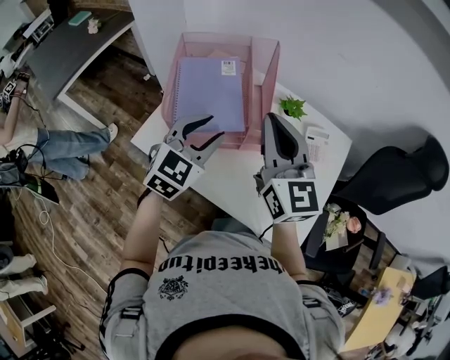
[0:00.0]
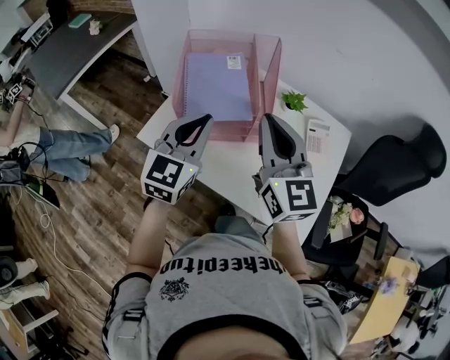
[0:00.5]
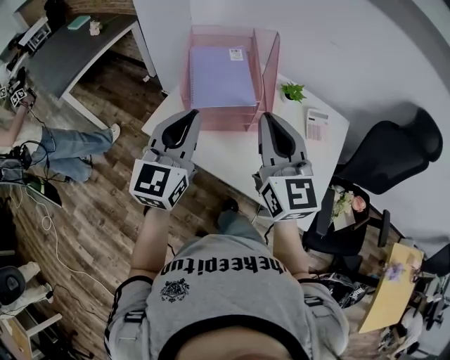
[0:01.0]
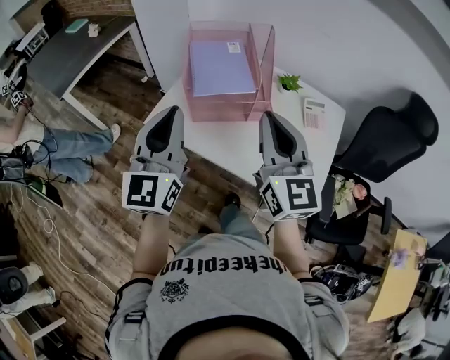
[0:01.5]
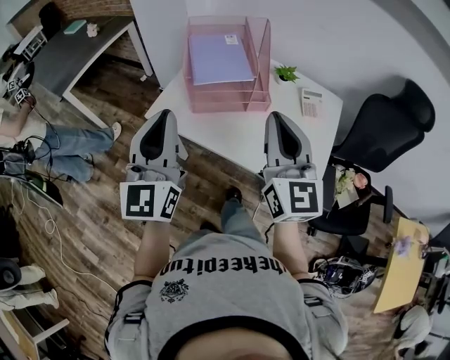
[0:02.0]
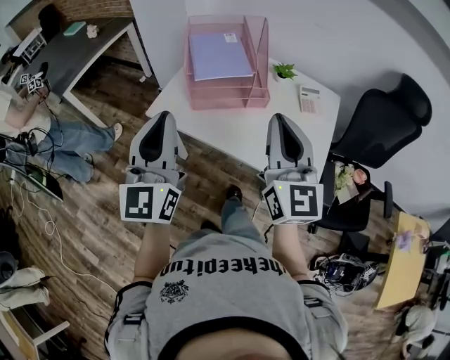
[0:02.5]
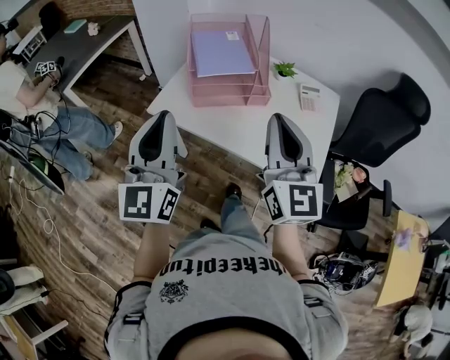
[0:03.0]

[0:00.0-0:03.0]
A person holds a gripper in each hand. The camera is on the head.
0:00.0 to 0:01.5: The right gripper goes about 15 cm backward. The left gripper goes approximately 25 cm backward, to the left and upward, tilts its fingers approximately 30 degrees upward, and closes.
0:01.5 to 0:03.0: Both grippers travel together backward, roughly 10 cm.

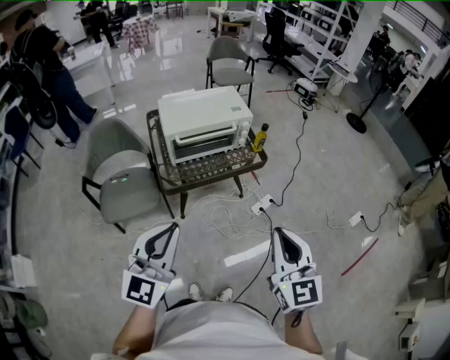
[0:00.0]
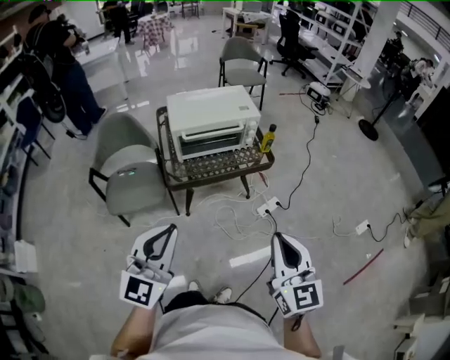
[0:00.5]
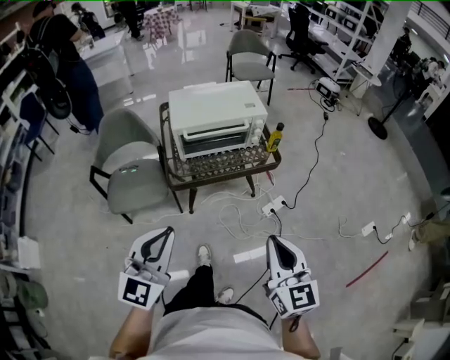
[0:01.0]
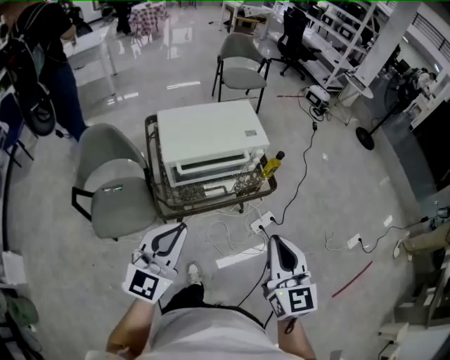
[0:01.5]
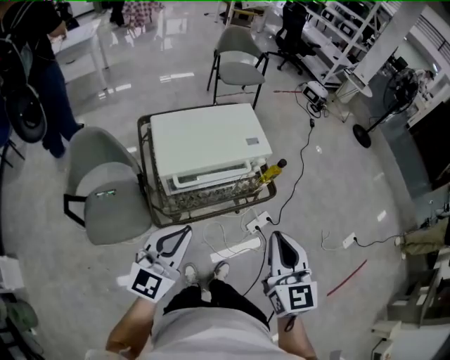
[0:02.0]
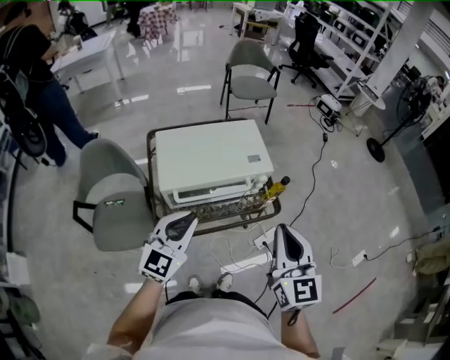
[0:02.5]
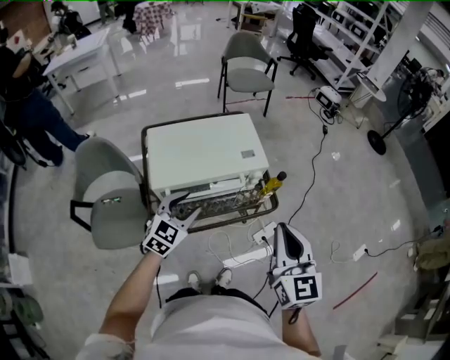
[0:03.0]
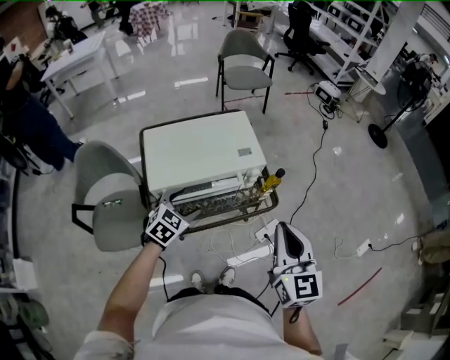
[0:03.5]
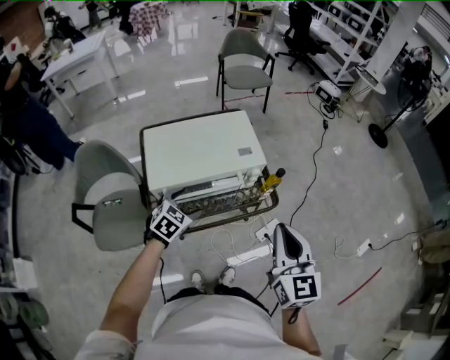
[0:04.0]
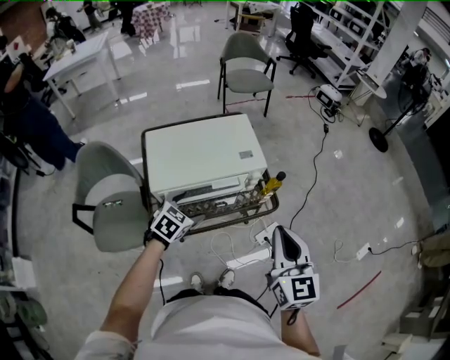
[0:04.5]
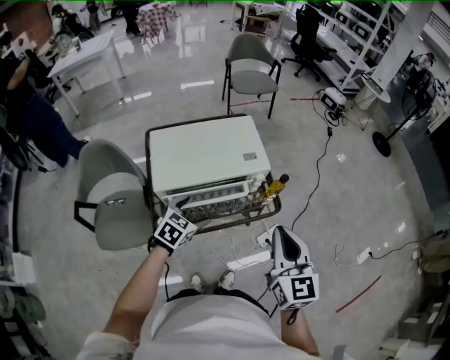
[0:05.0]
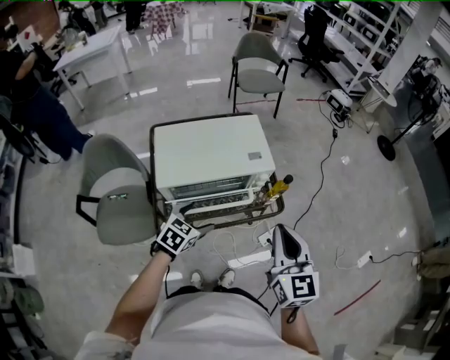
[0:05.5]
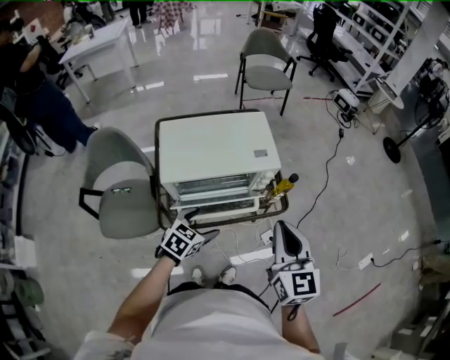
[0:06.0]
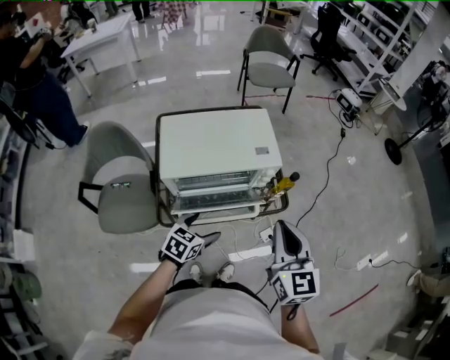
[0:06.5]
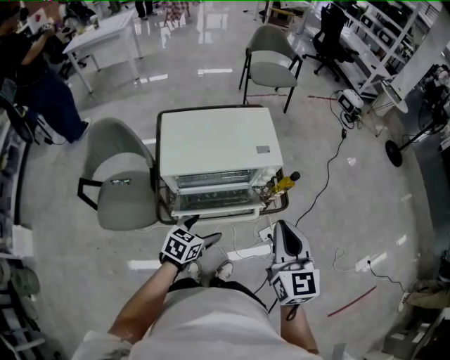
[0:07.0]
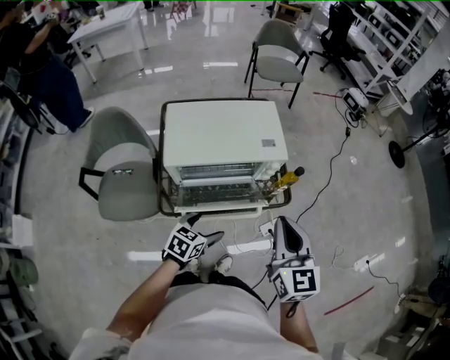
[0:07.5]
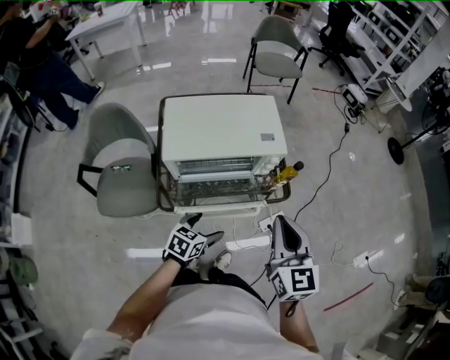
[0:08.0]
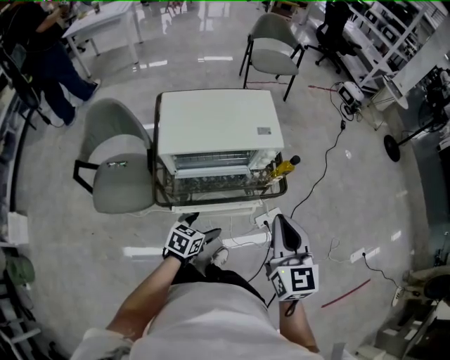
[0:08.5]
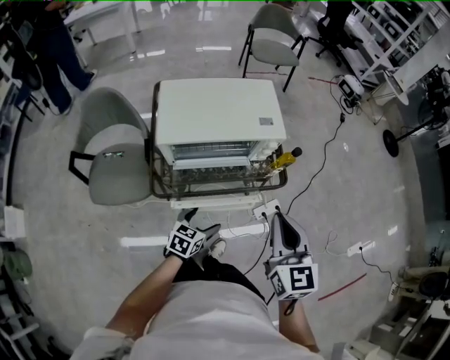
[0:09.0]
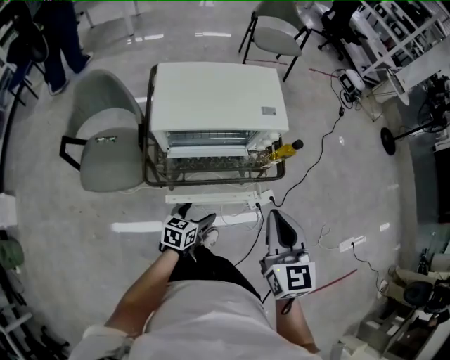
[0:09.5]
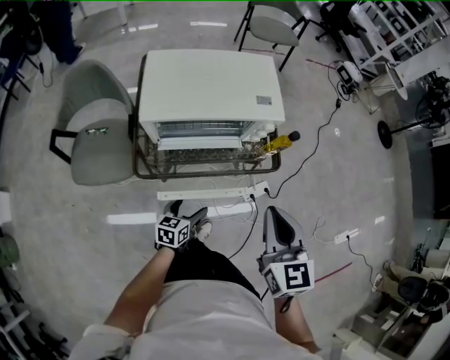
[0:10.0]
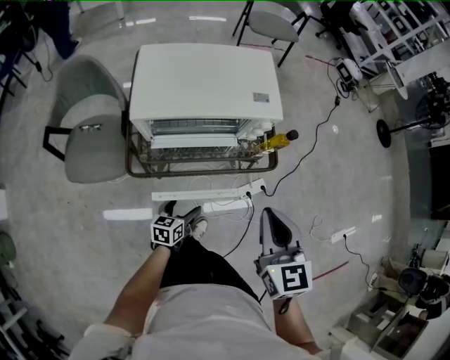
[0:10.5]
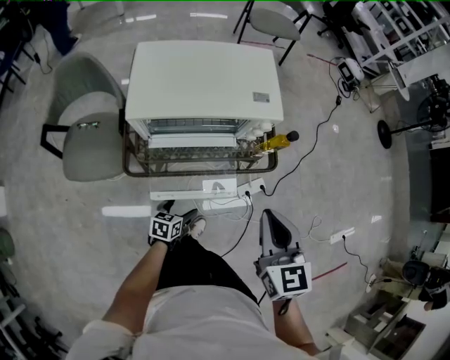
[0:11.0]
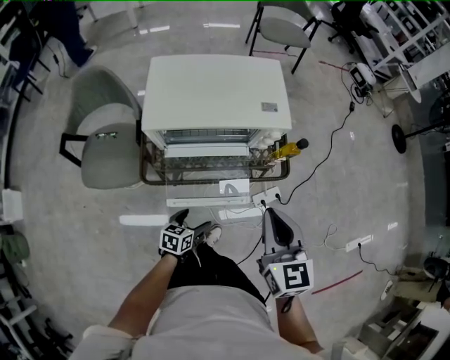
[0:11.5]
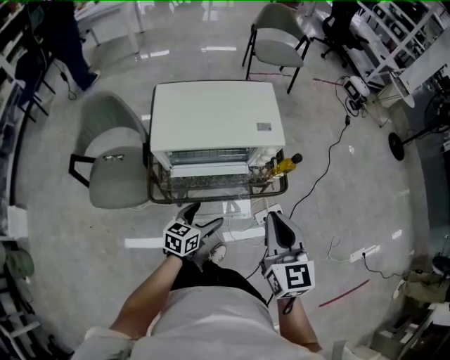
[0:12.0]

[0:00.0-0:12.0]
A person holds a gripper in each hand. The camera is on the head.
0:00.0 to 0:02.0: The two grippers go some 25 cm forward.
0:02.0 to 0:04.0: The left gripper is displaced forward and downward by roughly 25 cm, points its fingers approximately 40 degrees further downward, and opens; the right gripper shifts approximately 10 cm forward and to the right.
0:04.0 to 0:06.0: The left gripper is displaced backward by roughly 5 cm.
0:06.0 to 0:08.0: The left gripper travels backward by roughly 5 cm.
0:08.0 to 0:10.0: The right gripper goes approximately 5 cm downward. Meanwhile the left gripper travels downward by roughly 10 cm, and rotates about 20 degrees.
0:10.0 to 0:12.0: The left gripper shifts roughly 10 cm upward and forward.

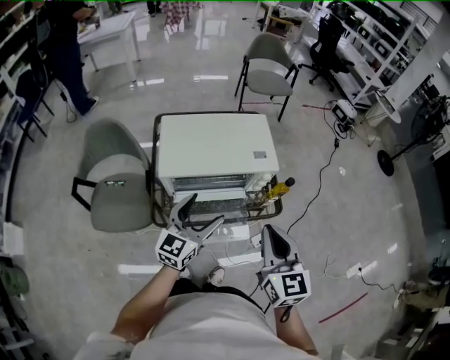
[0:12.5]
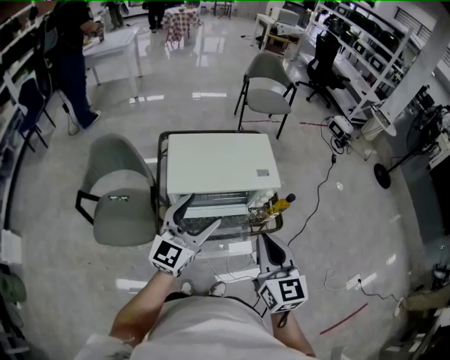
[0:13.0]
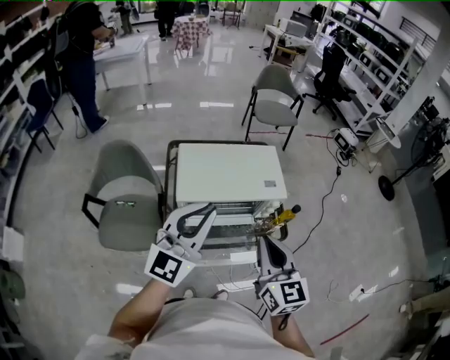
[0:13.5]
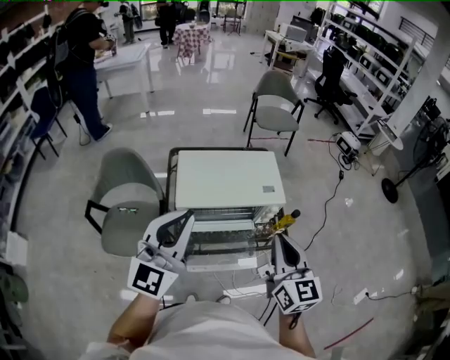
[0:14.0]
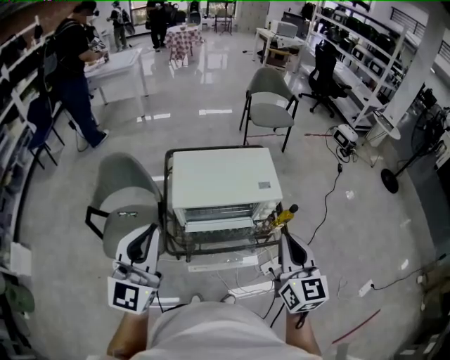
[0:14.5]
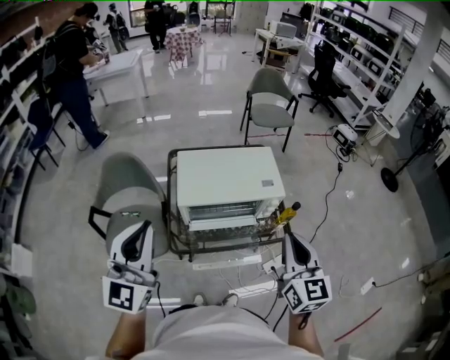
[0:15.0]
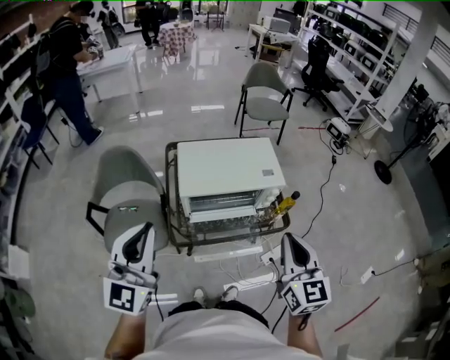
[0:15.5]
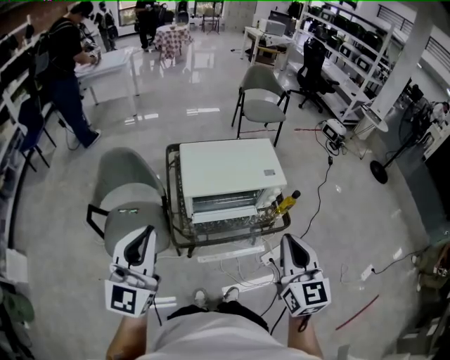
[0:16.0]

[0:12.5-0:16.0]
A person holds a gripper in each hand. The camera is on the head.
0:12.5 to 0:14.5: The left gripper goes approximately 25 cm upward, to the left and backward, changes its angle by about 30 degrees, and closes its fingers. The right gripper shifts some 5 cm upward.
0:14.5 to 0:16.0: The right gripper is displaced backward and to the left by some 10 cm; the left gripper is displaced to the left and backward by about 10 cm.

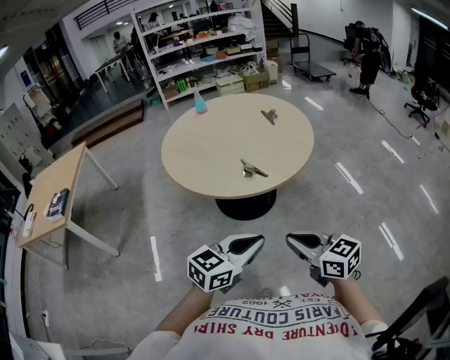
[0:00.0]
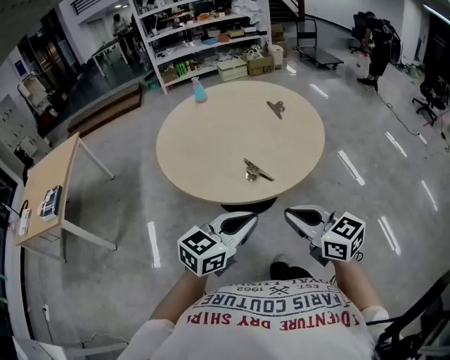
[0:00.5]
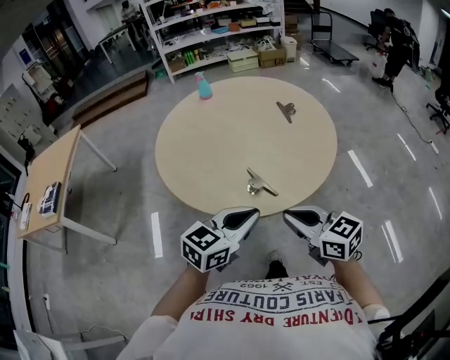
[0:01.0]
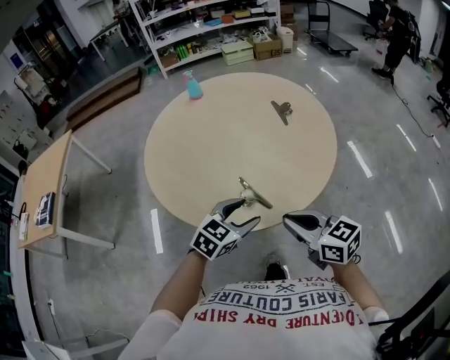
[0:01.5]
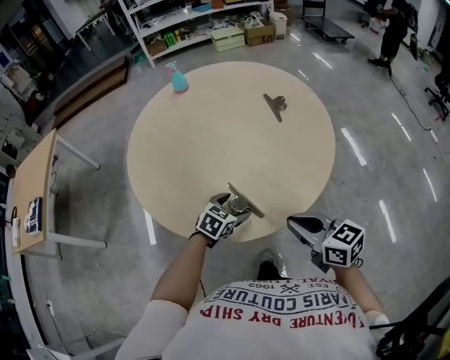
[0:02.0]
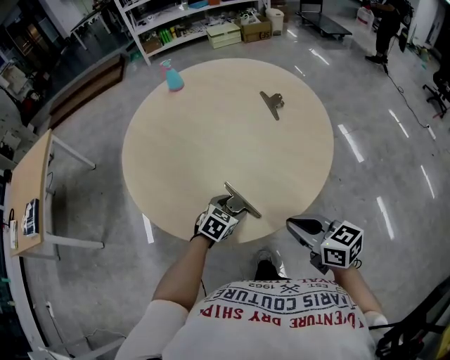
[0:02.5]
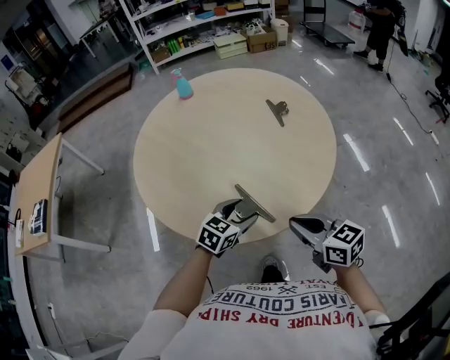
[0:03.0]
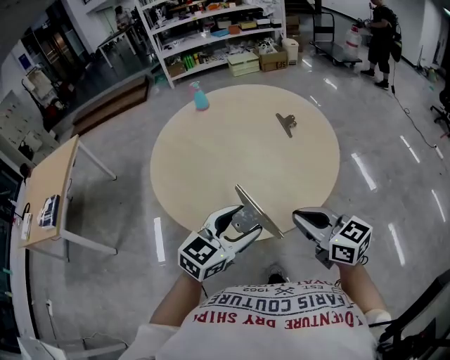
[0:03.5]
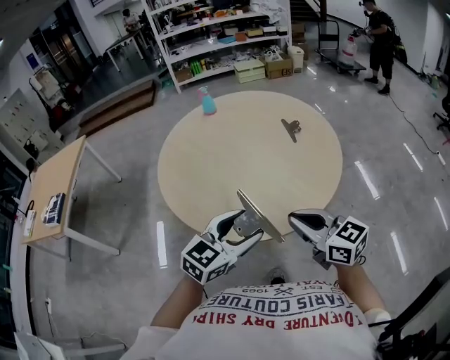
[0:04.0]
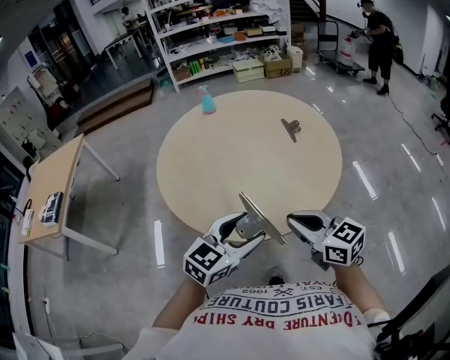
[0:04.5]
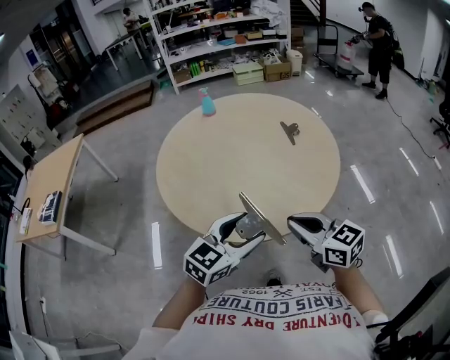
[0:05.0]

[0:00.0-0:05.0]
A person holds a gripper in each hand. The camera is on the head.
0:00.0 to 0:02.5: The left gripper is displaced forward and downward by approximately 50 cm, points its fingers some 40 degrees further downward, and opens. The right gripper shifts roughly 35 cm forward.
0:02.5 to 0:05.0: The right gripper travels upward and to the left by approximately 10 cm. Meanwhile the left gripper moves upward and backward, roughly 30 cm, and angles its fingers upward, by some 30 degrees.

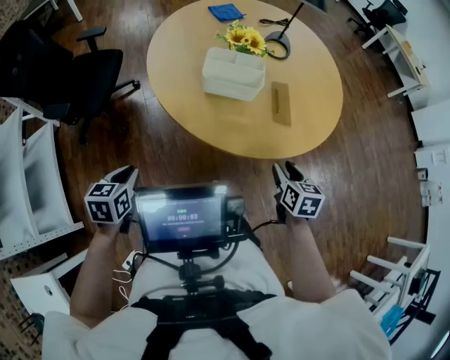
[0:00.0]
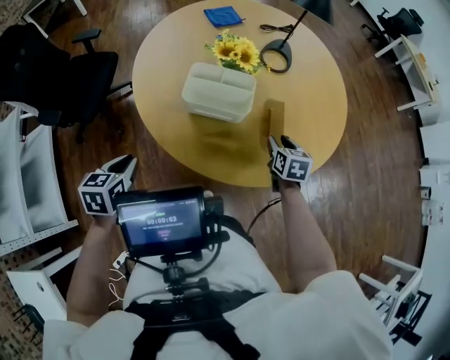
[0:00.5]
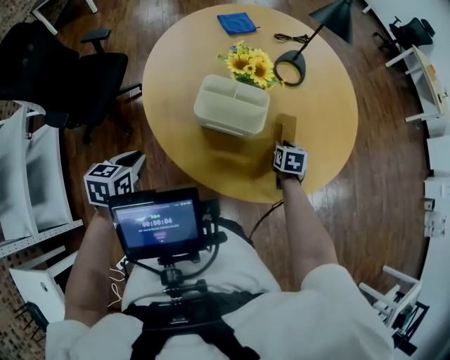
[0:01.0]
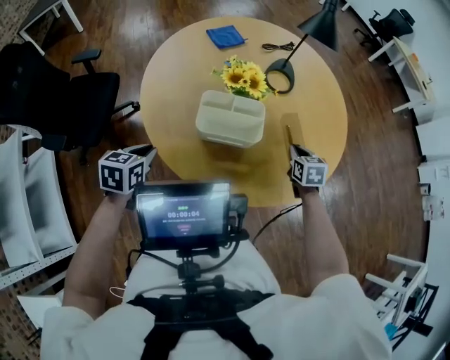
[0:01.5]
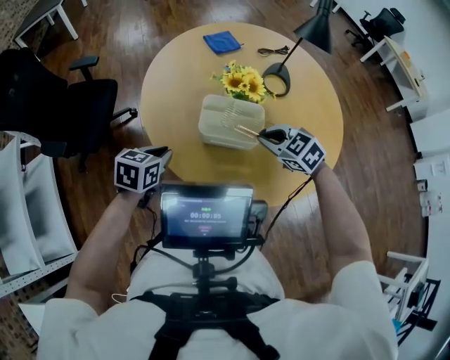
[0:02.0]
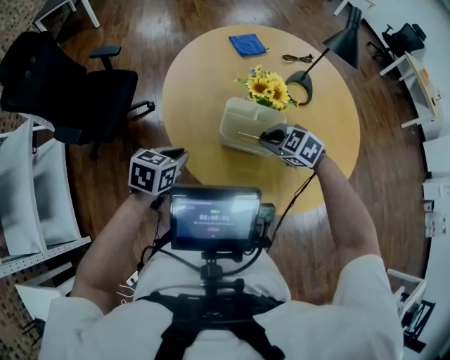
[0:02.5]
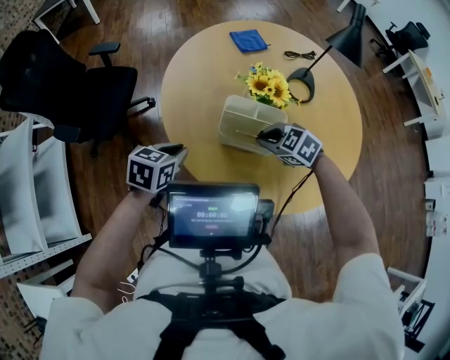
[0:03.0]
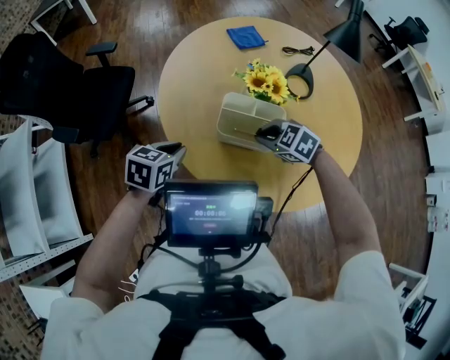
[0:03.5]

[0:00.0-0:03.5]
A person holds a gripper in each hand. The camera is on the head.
0:00.0 to 0:02.0: The two grippers go about 25 cm forward. The right gripper rotates around the line of its fingers by some 50 degrees, counterclockwise from behind, and closes.
0:02.0 to 0:03.5: The right gripper moves approximately 5 cm.
